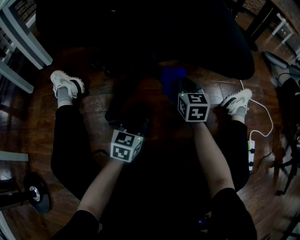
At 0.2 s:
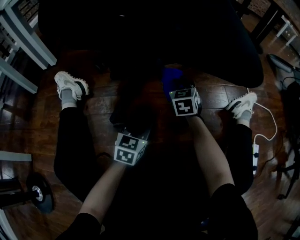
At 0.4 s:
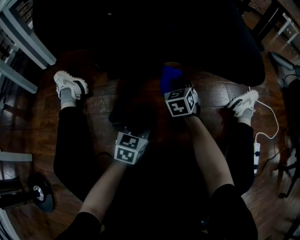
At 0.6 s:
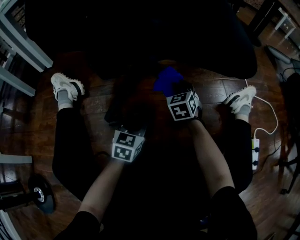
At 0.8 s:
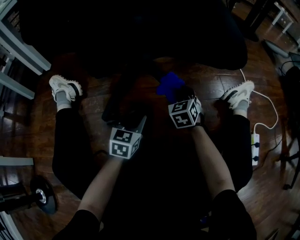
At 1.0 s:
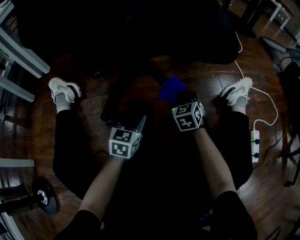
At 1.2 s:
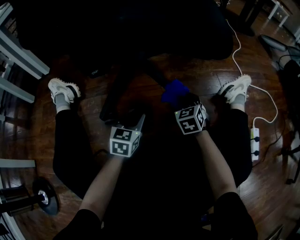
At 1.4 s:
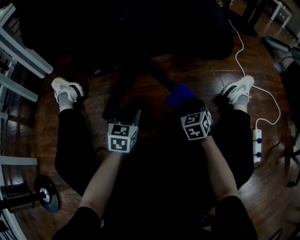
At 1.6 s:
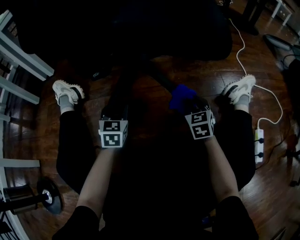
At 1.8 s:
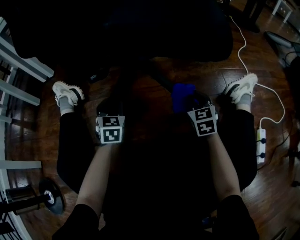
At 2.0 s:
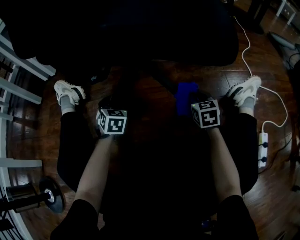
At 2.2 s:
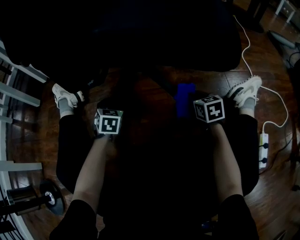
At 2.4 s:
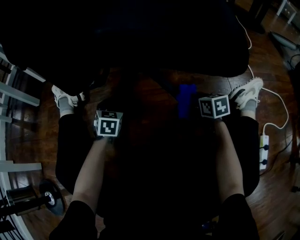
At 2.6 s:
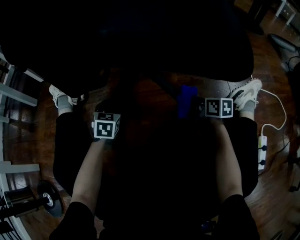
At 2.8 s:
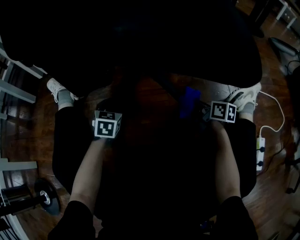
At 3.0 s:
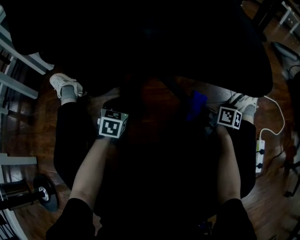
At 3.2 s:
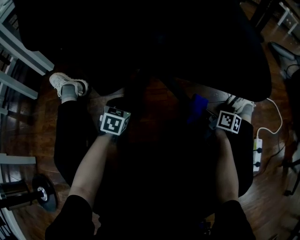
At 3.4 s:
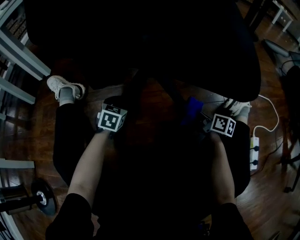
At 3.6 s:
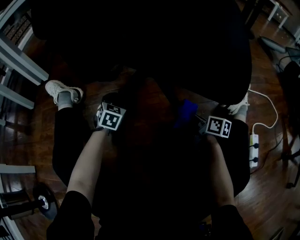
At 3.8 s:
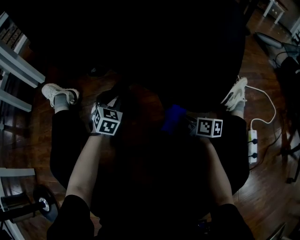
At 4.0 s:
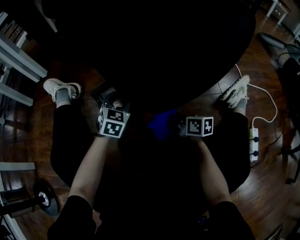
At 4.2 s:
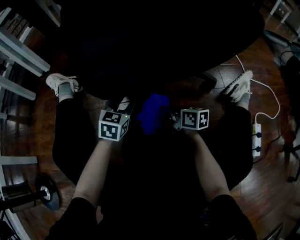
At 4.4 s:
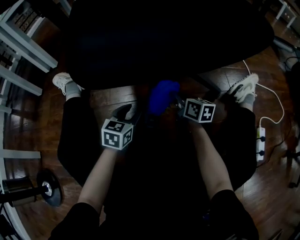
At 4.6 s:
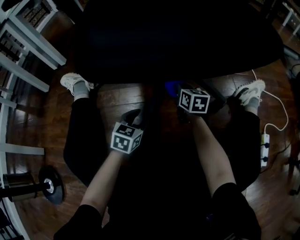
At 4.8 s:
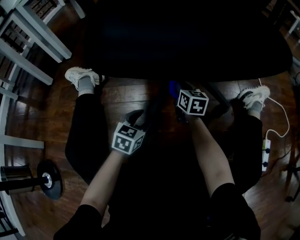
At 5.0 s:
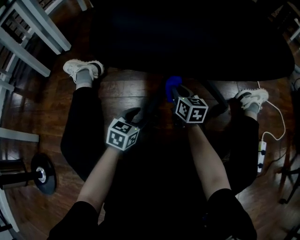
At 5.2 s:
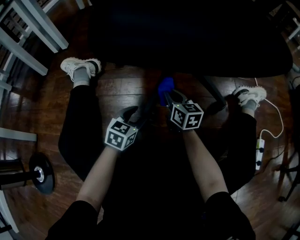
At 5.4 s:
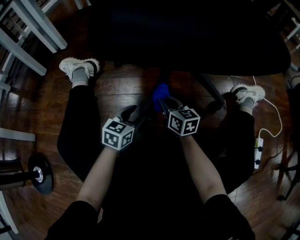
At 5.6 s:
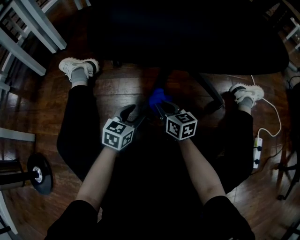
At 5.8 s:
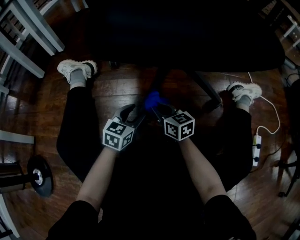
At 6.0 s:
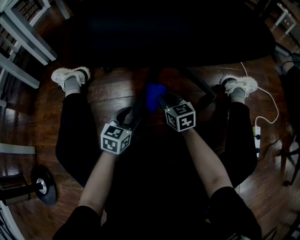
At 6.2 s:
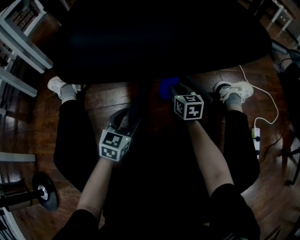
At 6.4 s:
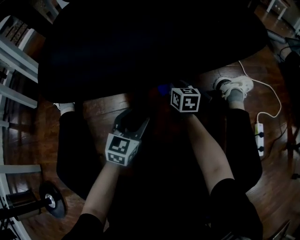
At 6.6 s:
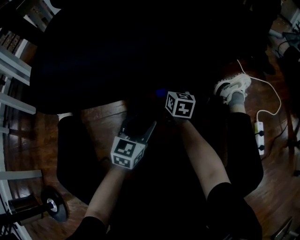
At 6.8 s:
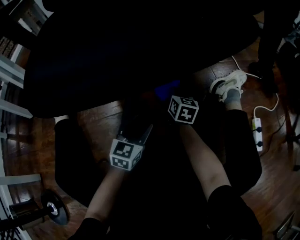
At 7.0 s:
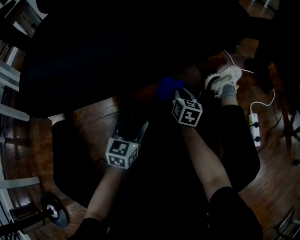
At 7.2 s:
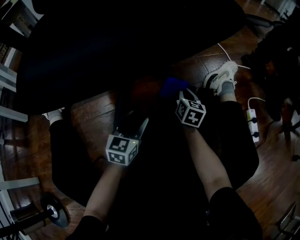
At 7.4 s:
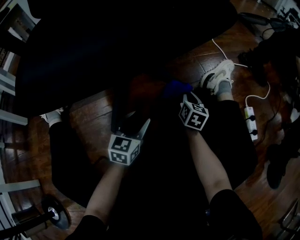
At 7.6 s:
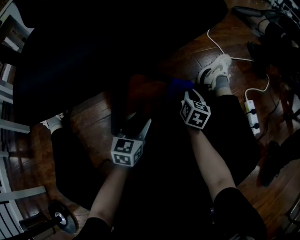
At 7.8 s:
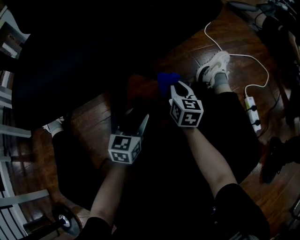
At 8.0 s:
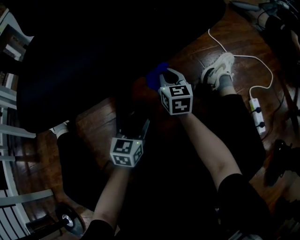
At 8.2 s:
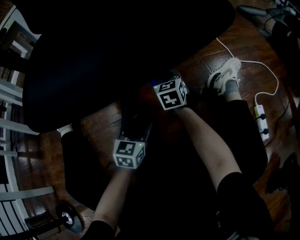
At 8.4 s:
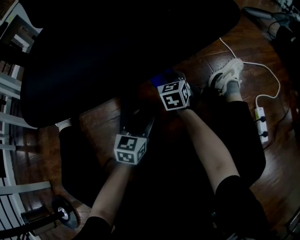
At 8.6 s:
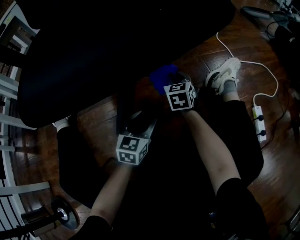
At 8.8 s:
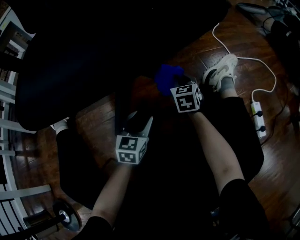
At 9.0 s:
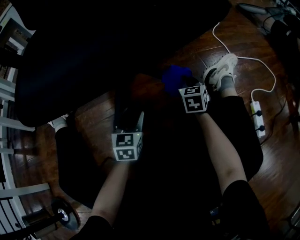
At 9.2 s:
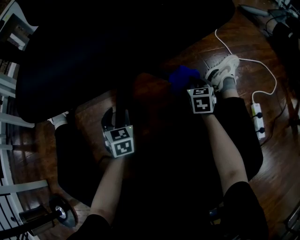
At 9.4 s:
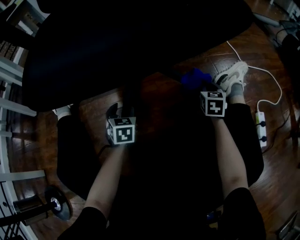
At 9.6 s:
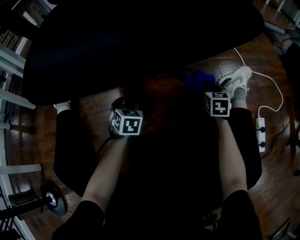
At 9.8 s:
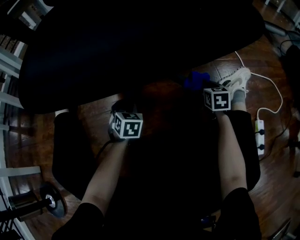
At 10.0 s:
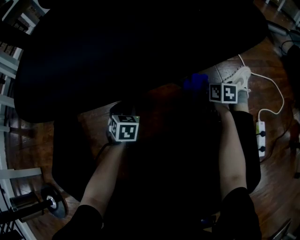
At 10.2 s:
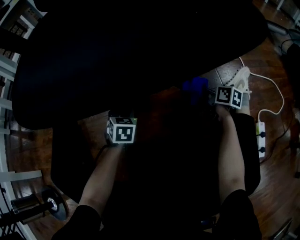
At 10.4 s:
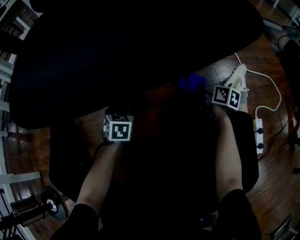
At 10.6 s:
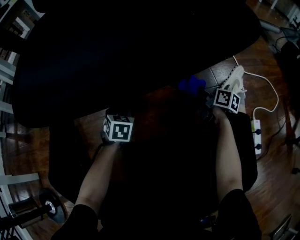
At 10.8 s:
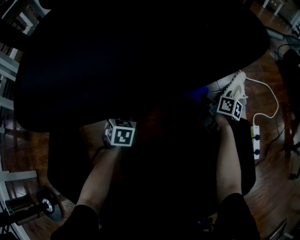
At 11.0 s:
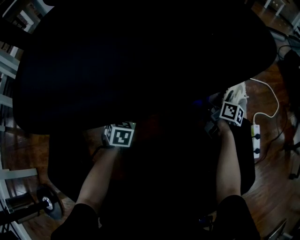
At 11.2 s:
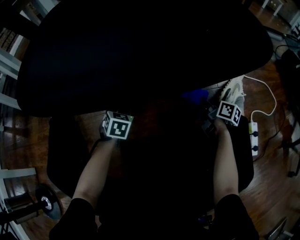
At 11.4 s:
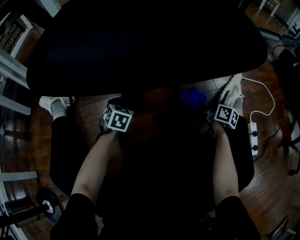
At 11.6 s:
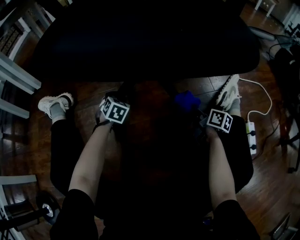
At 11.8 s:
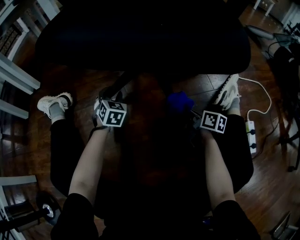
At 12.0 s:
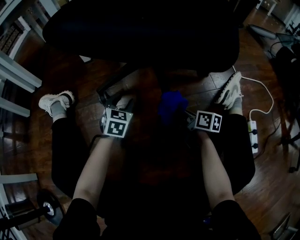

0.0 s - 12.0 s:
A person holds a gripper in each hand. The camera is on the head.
0.0 s - 1.6 s: The right gripper heads downward, to the right and backward, covering approximately 15 cm, while the left gripper goes approximately 10 cm to the left, and changes its angle by about 20 degrees.
1.6 s - 3.0 s: The left gripper heads downward, covering about 5 cm. The right gripper changes place by about 5 cm, and rotates around the line of its fingers by about 60 degrees, clockwise from behind.
3.0 s - 4.4 s: The left gripper shifts approximately 10 cm backward. Meanwhile the right gripper is displaced to the left by roughly 15 cm.
4.4 s - 6.0 s: The right gripper moves forward and backward over some 15 cm, changing direction 2 times, and changes its angle by some 30 degrees.
6.0 s - 7.6 s: The left gripper shifts by some 15 cm, while the right gripper moves roughly 25 cm, and turns by some 50 degrees.
7.6 s - 9.0 s: The left gripper ends up approximately 5 cm from where it was, while the right gripper goes to the left and returns, approximately 15 cm each way, and rotates roughly 30 degrees.
9.0 s - 10.4 s: The right gripper twists approximately 40 degrees clockwise, seen from behind. The left gripper changes place by some 10 cm, and turns by some 30 degrees.
10.4 s - 12.0 s: The right gripper is displaced to the left and backward by roughly 15 cm, while the left gripper reaches about 10 cm forward, then returns.

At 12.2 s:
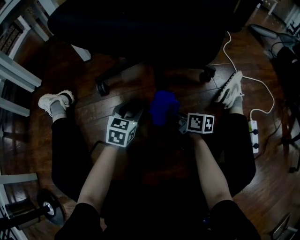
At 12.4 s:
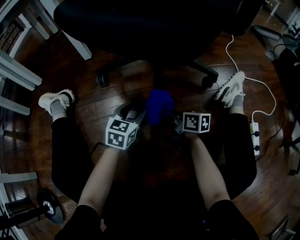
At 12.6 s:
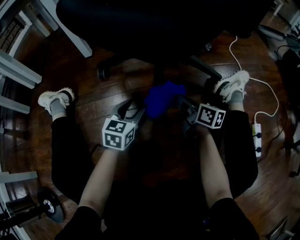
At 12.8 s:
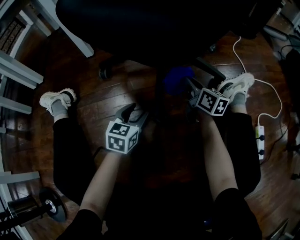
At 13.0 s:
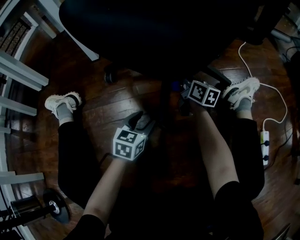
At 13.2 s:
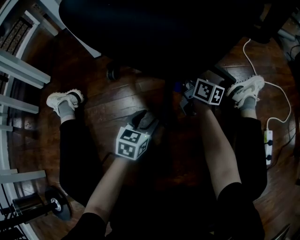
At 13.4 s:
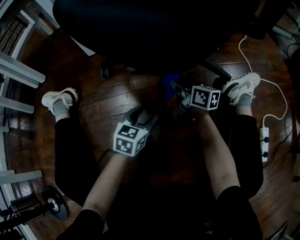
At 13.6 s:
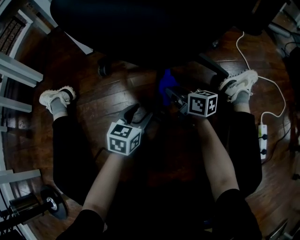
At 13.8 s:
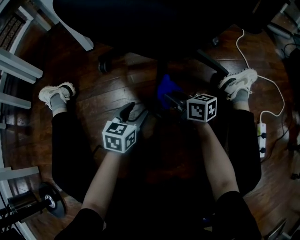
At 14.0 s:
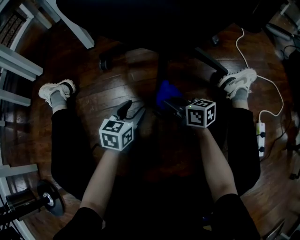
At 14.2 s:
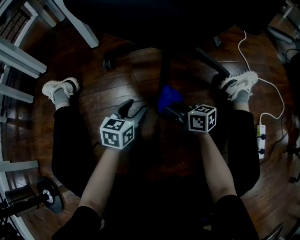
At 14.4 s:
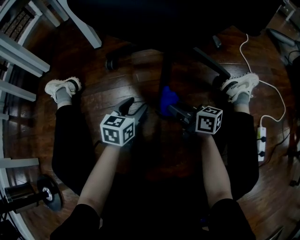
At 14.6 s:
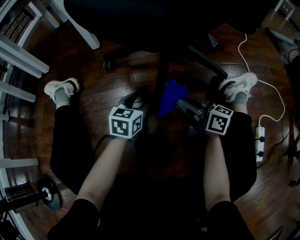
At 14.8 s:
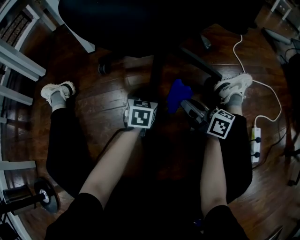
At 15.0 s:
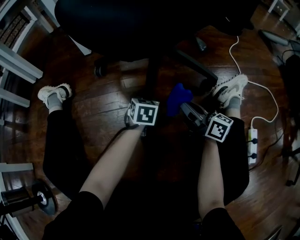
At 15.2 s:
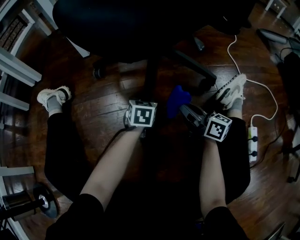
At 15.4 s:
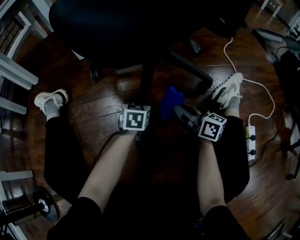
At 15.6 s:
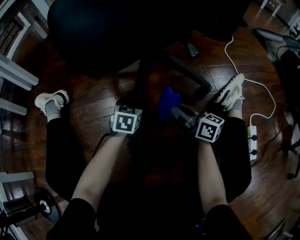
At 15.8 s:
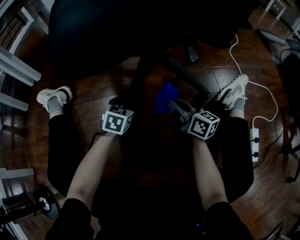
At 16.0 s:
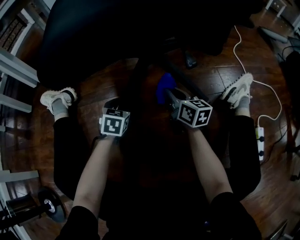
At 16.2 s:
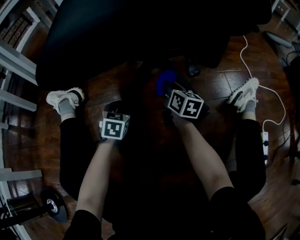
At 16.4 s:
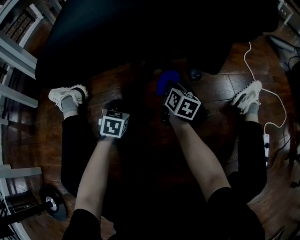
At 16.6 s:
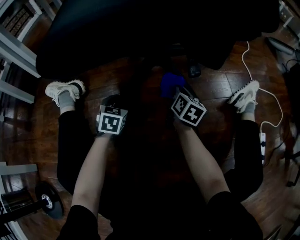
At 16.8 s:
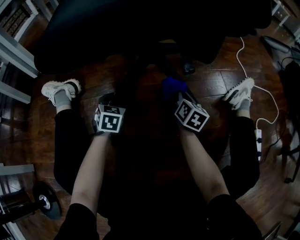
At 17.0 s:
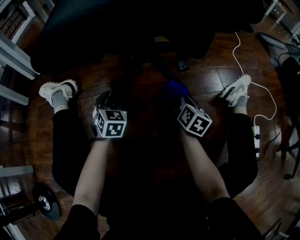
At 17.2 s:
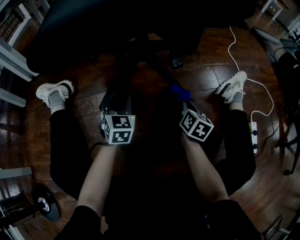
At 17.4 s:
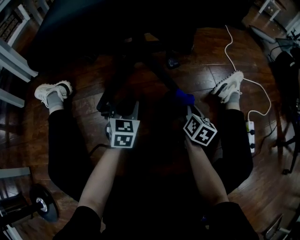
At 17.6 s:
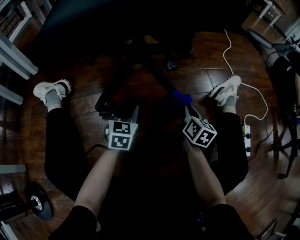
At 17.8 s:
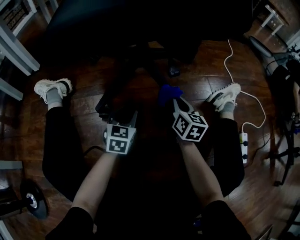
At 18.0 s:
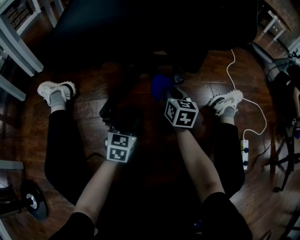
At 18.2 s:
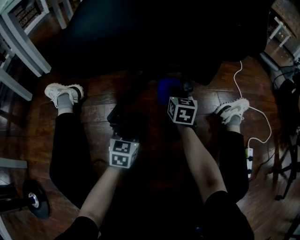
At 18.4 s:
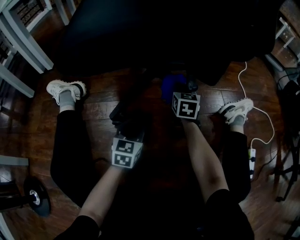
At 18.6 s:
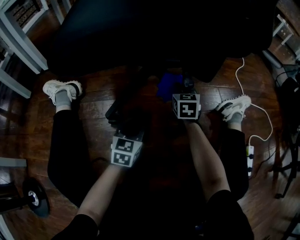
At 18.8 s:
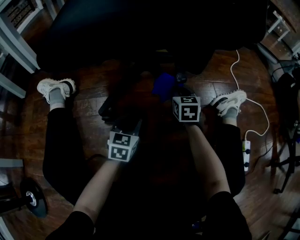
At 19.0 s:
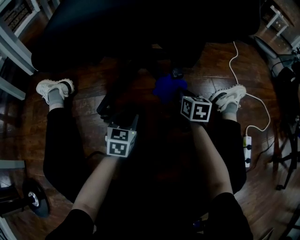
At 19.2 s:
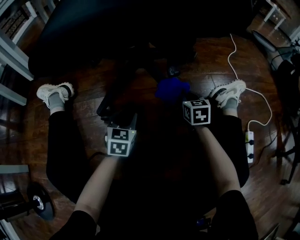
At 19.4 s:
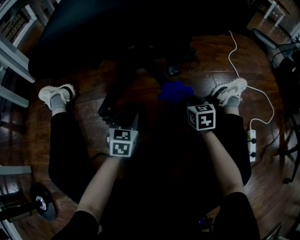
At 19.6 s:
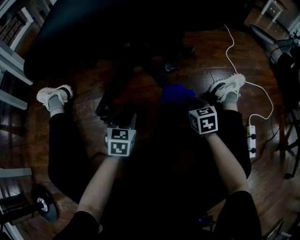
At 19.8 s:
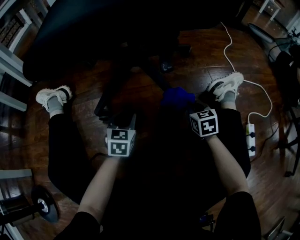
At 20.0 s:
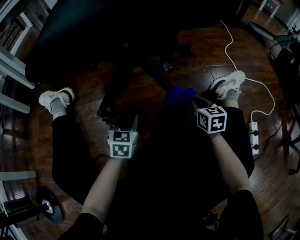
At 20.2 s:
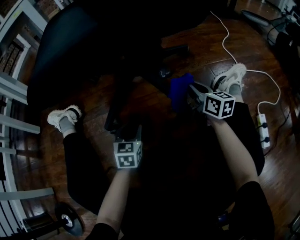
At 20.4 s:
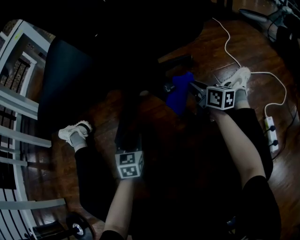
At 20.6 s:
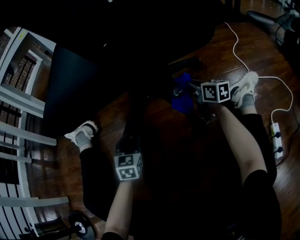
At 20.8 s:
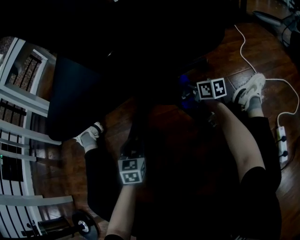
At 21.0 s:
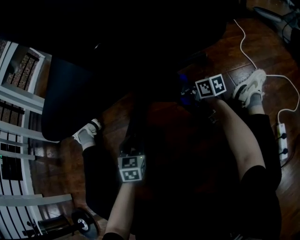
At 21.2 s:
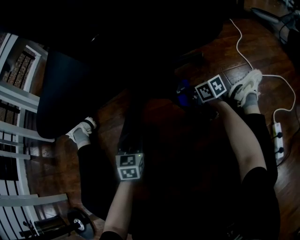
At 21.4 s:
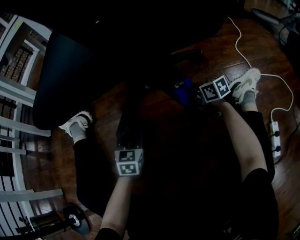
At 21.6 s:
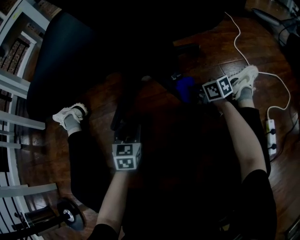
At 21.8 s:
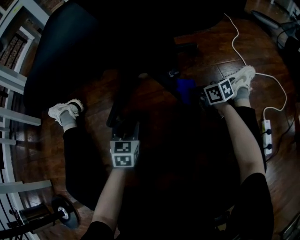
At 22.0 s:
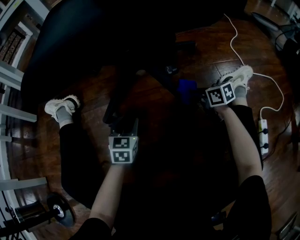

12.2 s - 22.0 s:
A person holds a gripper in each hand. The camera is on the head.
12.2 s - 13.6 s: The right gripper moves forward, about 10 cm, and turns by approximately 20 degrees.
13.6 s - 15.0 s: The left gripper heads to the right and forward, covering roughly 10 cm, and rotates some 20 degrees. Meanwhile the right gripper travels backward, to the right and upward by approximately 15 cm.
15.0 s - 16.4 s: The right gripper heads forward, to the left and downward, covering some 20 cm, and changes its angle by about 40 degrees, while the left gripper heads to the left, covering some 20 cm.
16.4 s - 17.8 s: The right gripper is displaced backward and to the right by about 15 cm; the left gripper heads to the right and backward, covering roughly 15 cm.
17.8 s - 19.2 s: The right gripper turns by roughly 30 degrees.
19.2 s - 20.6 s: The right gripper heads forward, covering roughly 10 cm, and changes its angle by approximately 40 degrees. The left gripper goes about 5 cm to the left.
20.6 s - 22.0 s: The left gripper moves roughly 5 cm, while the right gripper goes roughly 15 cm backward and downward, and turns by approximately 30 degrees.

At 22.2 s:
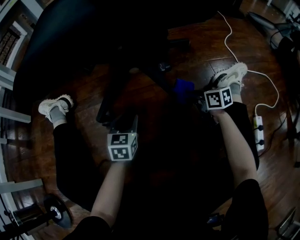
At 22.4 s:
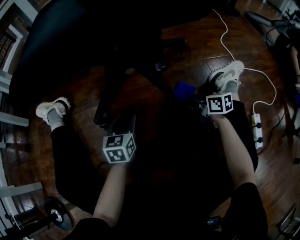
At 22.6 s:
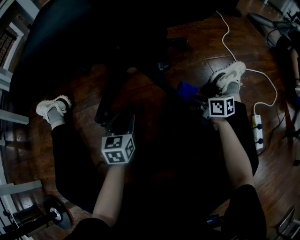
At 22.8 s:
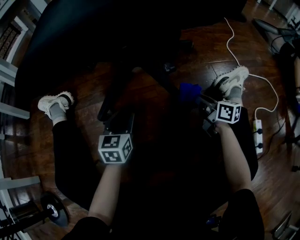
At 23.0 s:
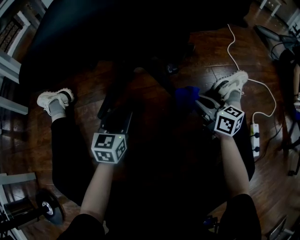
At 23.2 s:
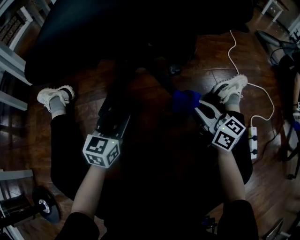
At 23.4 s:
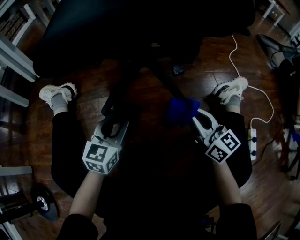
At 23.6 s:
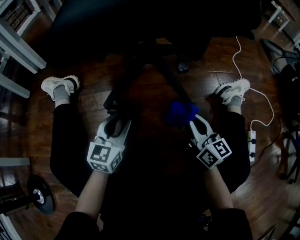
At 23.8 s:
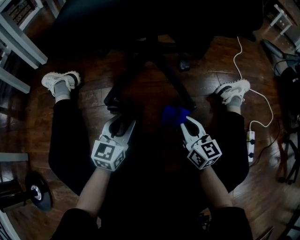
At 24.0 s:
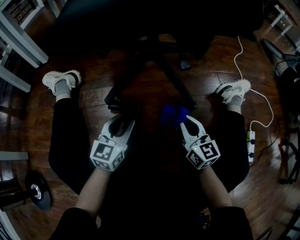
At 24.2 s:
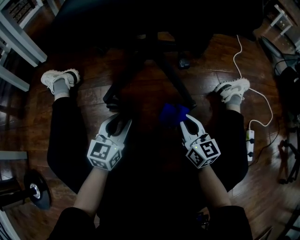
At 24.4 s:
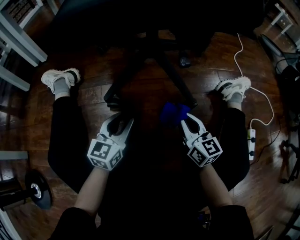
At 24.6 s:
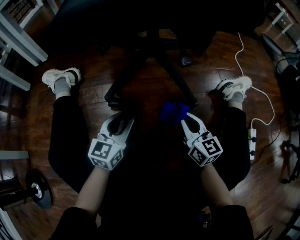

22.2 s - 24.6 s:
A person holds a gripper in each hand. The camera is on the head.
22.2 s - 23.4 s: The left gripper goes roughly 10 cm upward and to the left; the right gripper is displaced upward, backward and to the left by some 20 cm, and turns by roughly 40 degrees.
23.4 s - 24.6 s: The right gripper heads downward, covering about 5 cm.
